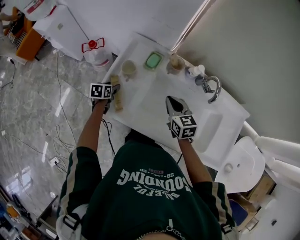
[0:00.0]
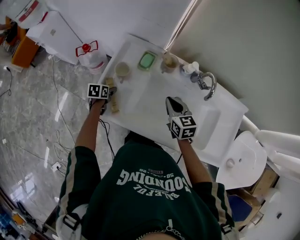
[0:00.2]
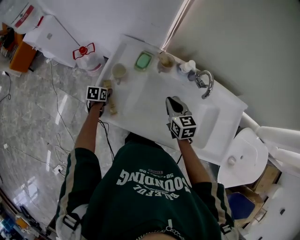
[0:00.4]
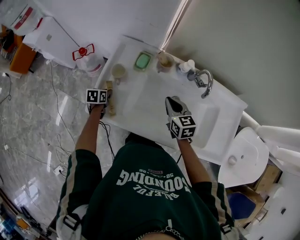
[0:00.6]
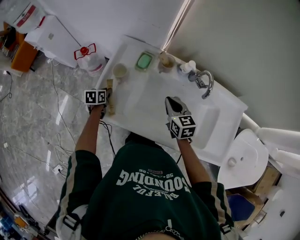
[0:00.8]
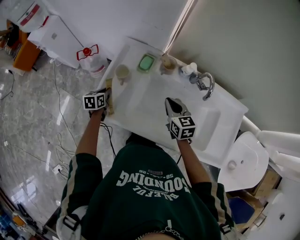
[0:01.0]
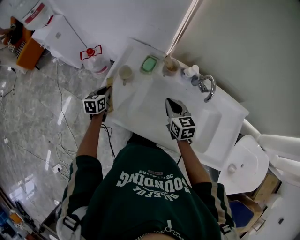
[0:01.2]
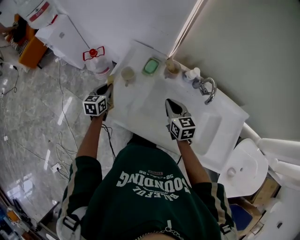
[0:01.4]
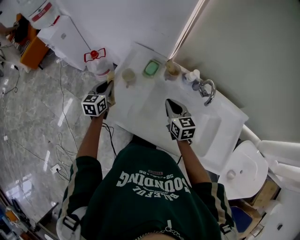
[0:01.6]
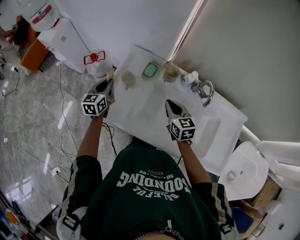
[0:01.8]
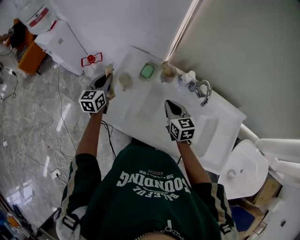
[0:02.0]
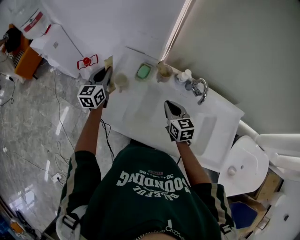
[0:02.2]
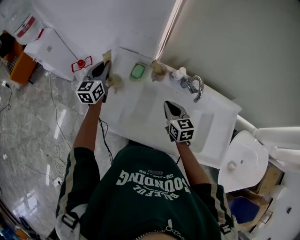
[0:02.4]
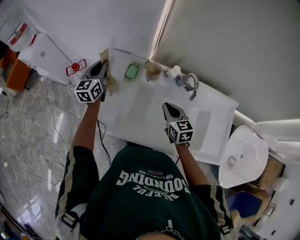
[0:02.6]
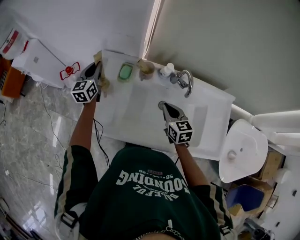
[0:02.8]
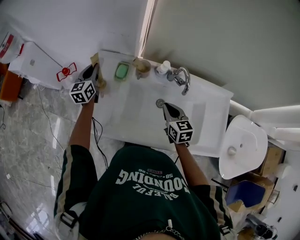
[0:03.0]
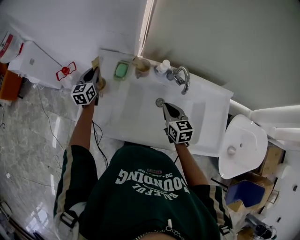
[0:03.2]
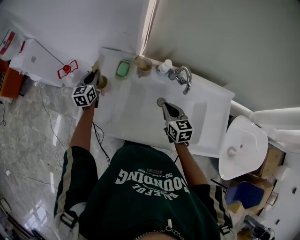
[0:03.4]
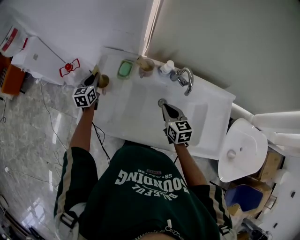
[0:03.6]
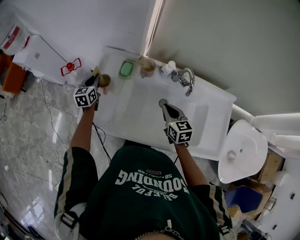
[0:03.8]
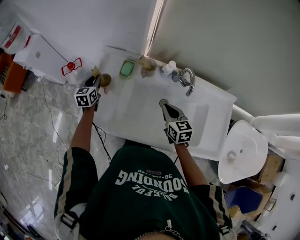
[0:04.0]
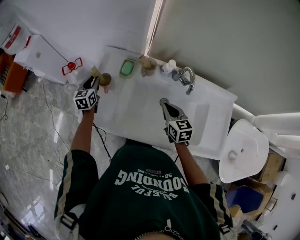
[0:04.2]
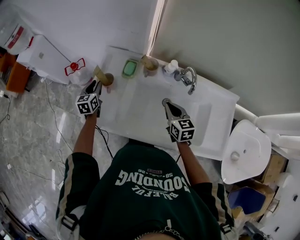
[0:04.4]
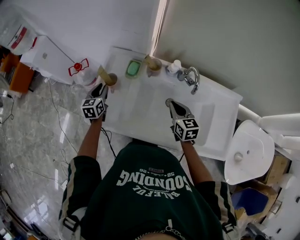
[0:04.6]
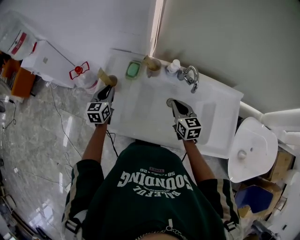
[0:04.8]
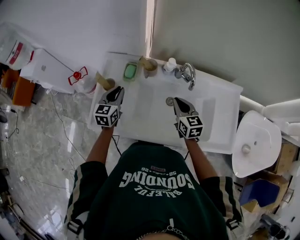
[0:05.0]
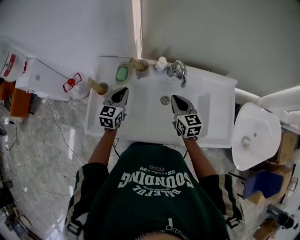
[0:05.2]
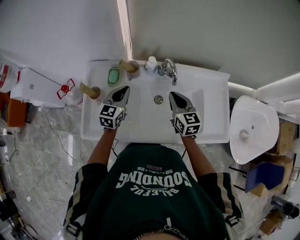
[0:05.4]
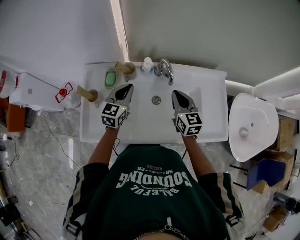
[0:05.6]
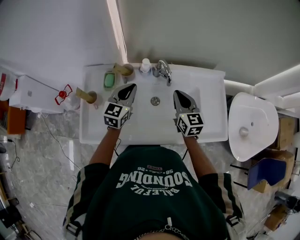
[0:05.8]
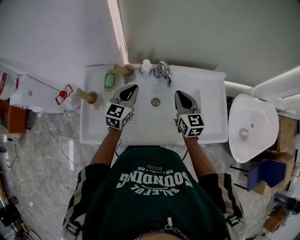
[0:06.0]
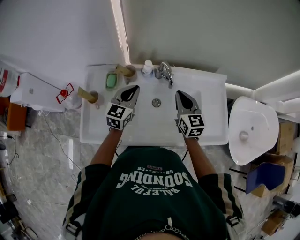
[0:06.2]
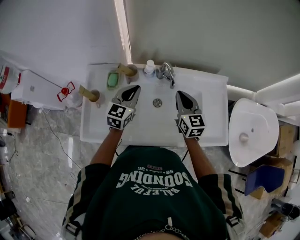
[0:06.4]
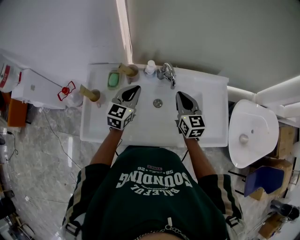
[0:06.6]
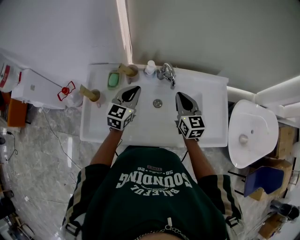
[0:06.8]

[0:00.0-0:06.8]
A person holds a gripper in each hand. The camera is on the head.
0:00.0 to 0:01.4: The left gripper is displaced upward by roughly 10 cm, changes its angle by some 30 degrees, and closes its fingers.
0:01.4 to 0:02.8: The left gripper is displaced forward, upward and to the right by about 20 cm, and swivels approximately 20 degrees. The right gripper shifts roughly 10 cm to the right.
0:02.8 to 0:04.0: The left gripper goes some 10 cm downward.
0:04.0 to 0:05.4: The right gripper travels to the right and upward by some 10 cm; the left gripper goes about 25 cm to the right, and rotates about 30 degrees.
0:05.4 to 0:06.8: The left gripper travels to the right by approximately 5 cm.

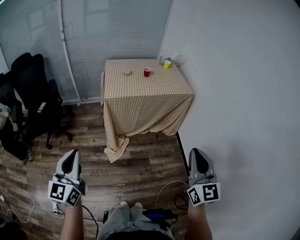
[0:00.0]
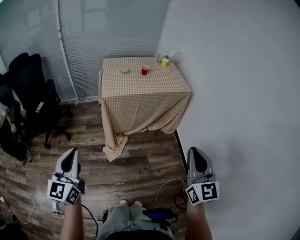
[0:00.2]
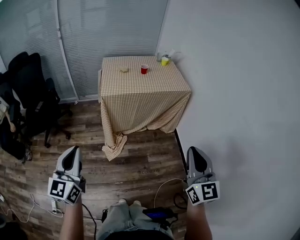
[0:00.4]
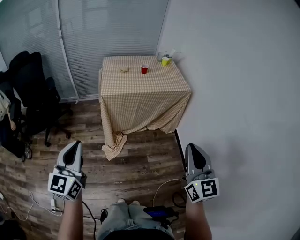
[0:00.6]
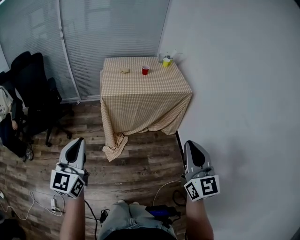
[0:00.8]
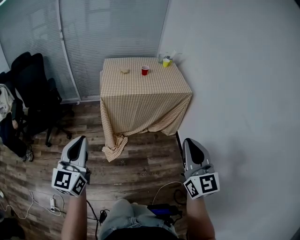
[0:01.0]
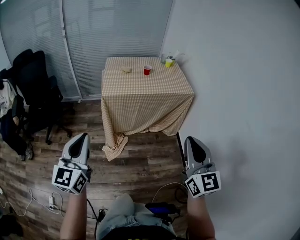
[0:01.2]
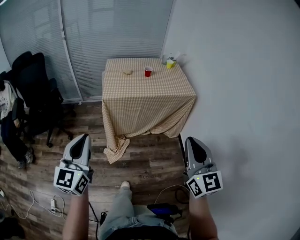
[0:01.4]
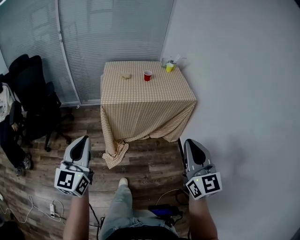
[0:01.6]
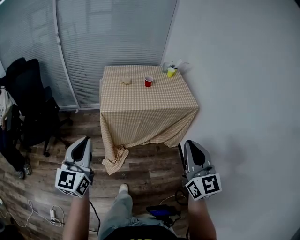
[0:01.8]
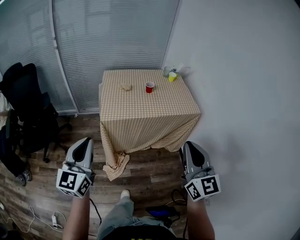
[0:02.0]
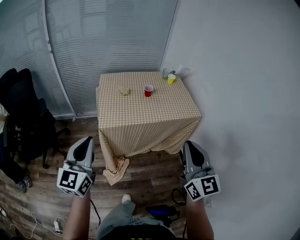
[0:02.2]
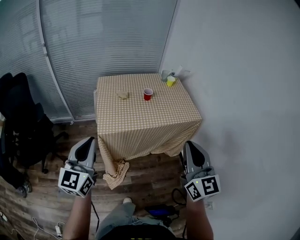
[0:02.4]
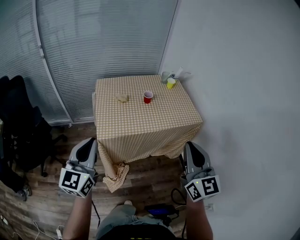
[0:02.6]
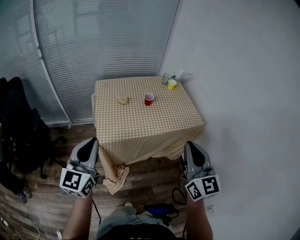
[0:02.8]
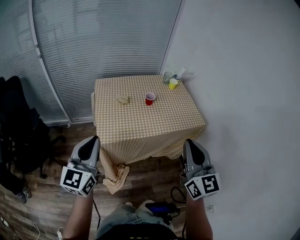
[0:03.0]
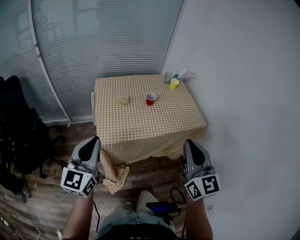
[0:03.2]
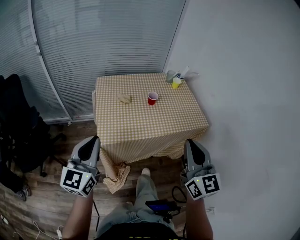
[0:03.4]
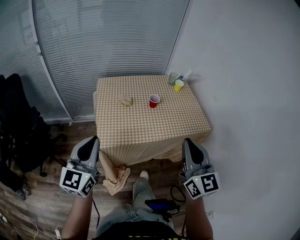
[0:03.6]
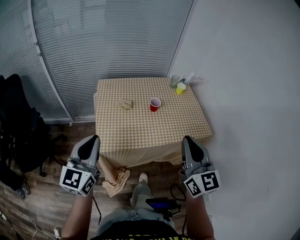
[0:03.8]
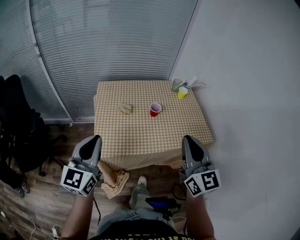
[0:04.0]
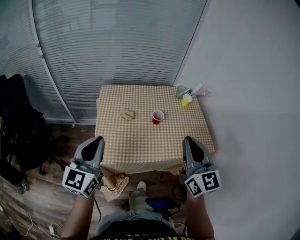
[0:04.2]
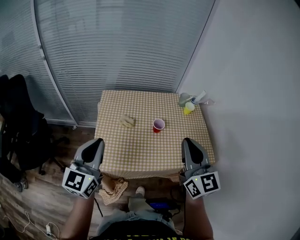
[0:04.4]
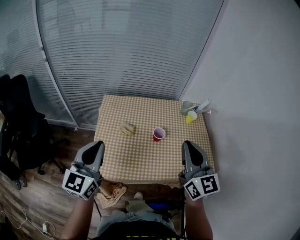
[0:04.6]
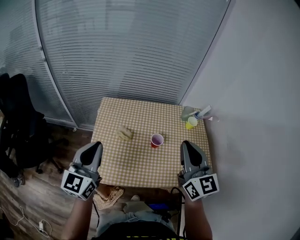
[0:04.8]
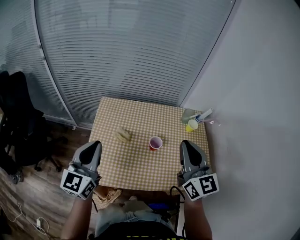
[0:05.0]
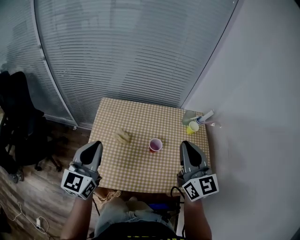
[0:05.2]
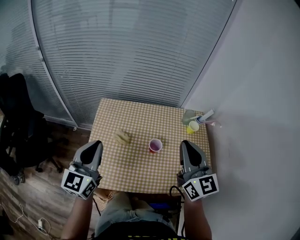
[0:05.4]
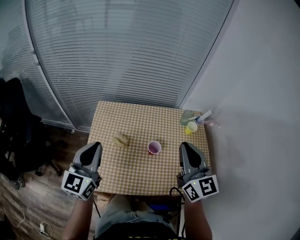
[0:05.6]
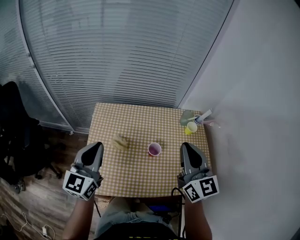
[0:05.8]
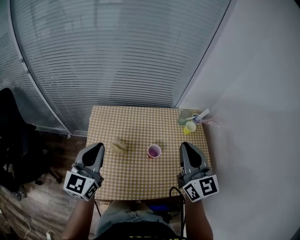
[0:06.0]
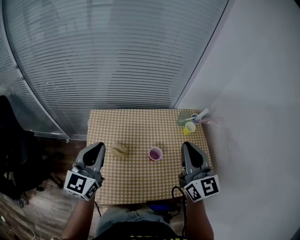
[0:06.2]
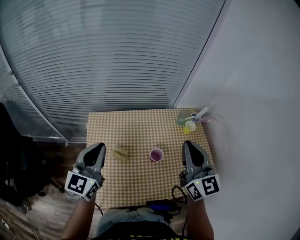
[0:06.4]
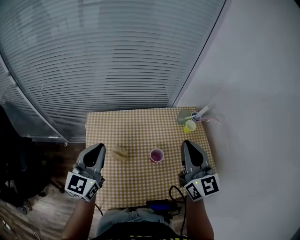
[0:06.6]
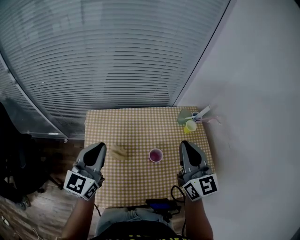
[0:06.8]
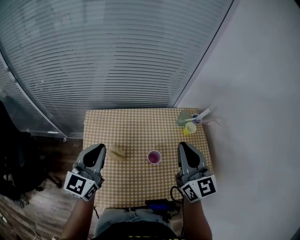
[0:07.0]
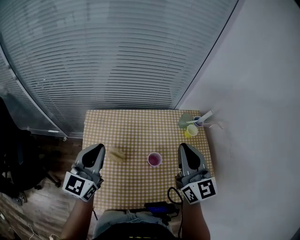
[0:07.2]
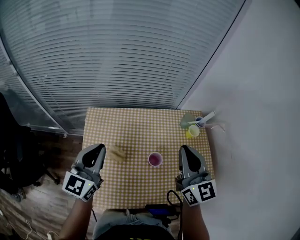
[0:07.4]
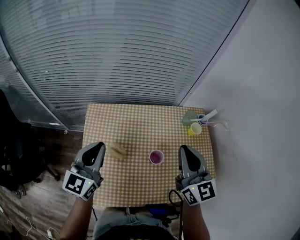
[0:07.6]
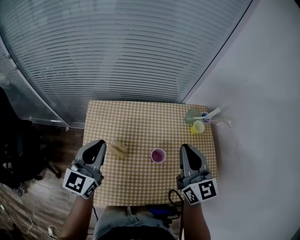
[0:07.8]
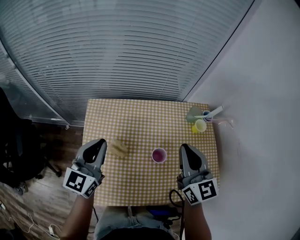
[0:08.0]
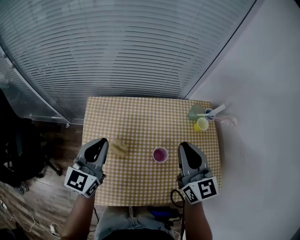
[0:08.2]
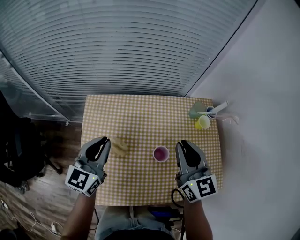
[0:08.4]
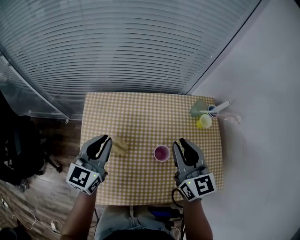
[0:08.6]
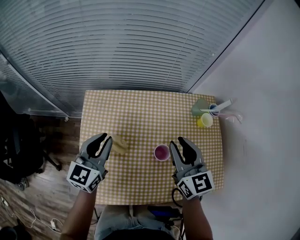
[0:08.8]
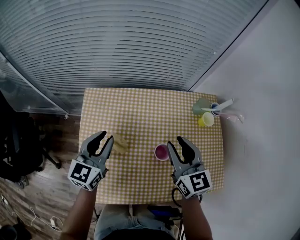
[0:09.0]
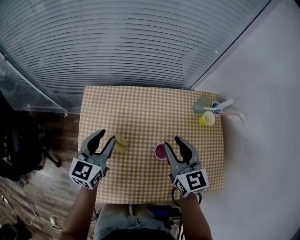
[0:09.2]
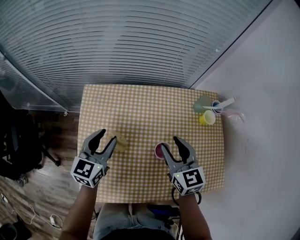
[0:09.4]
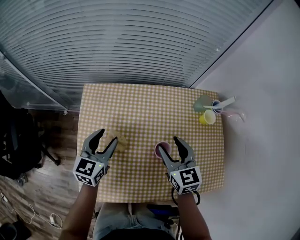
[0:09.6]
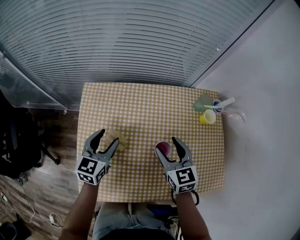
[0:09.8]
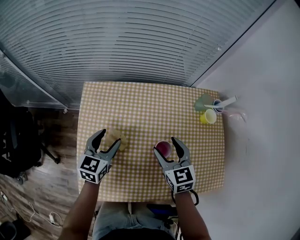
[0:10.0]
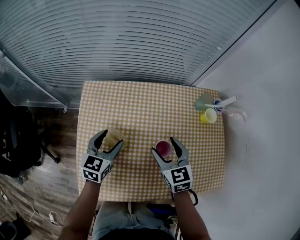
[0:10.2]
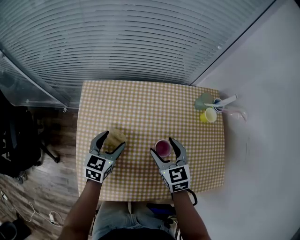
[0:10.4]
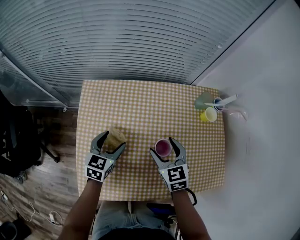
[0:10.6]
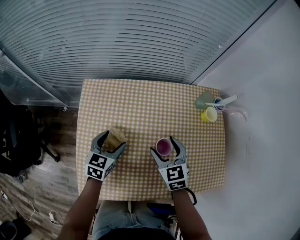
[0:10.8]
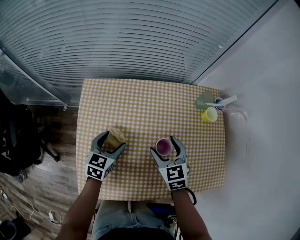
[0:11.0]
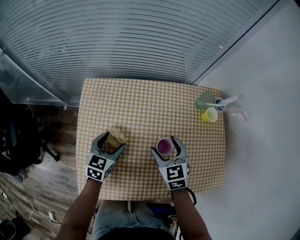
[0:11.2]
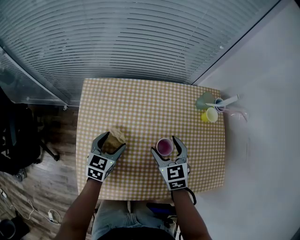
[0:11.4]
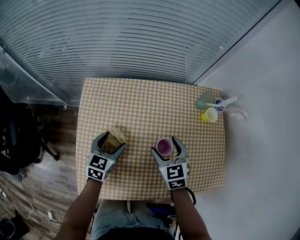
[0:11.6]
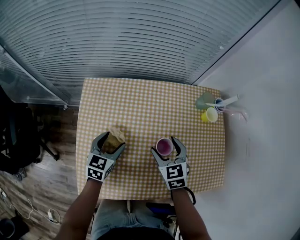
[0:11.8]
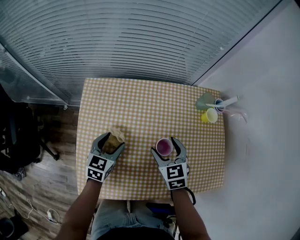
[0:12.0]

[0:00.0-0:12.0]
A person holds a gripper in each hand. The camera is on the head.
0:00.0 to 0:01.6: The right gripper heads forward, covering approximately 10 cm; the left gripper travels forward and to the right by about 15 cm.
0:01.6 to 0:03.0: Both grippers travel together forward, some 30 cm.
0:03.0 to 0:04.4: Both grippers move forward, some 20 cm.
0:04.4 to 0:06.0: The two grippers go about 20 cm forward.
0:06.0 to 0:07.6: Both grippers move forward, about 5 cm.
0:07.6 to 0:09.0: Both grippers travel together downward, roughly 10 cm. The right gripper opens.
0:09.0 to 0:10.4: Both grippers travel together downward, some 10 cm. The left gripper opens its fingers; the right gripper opens up.
0:10.4 to 0:12.0: There are only small adjustments of the grippers.

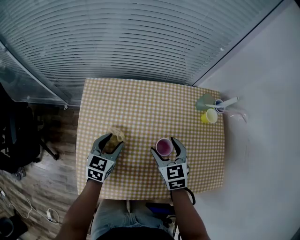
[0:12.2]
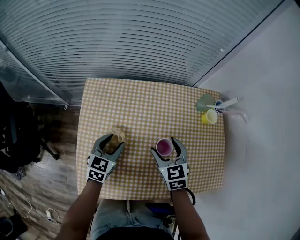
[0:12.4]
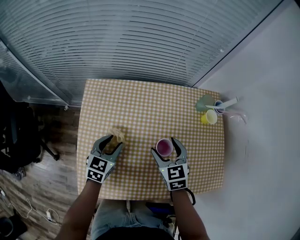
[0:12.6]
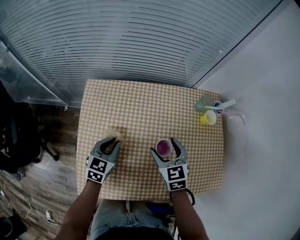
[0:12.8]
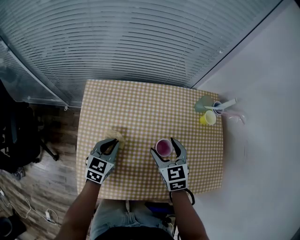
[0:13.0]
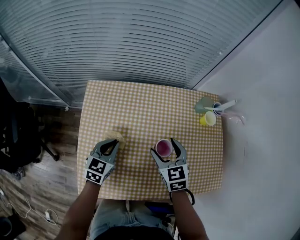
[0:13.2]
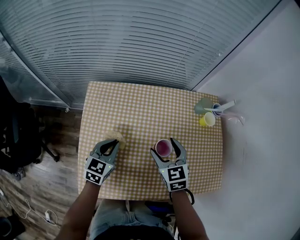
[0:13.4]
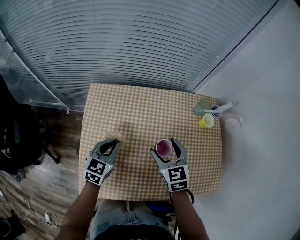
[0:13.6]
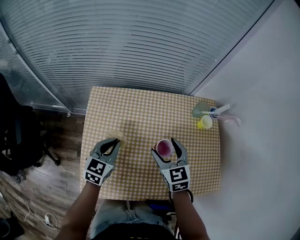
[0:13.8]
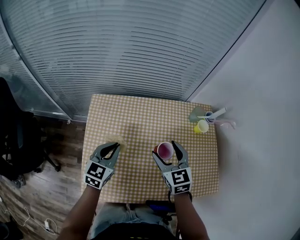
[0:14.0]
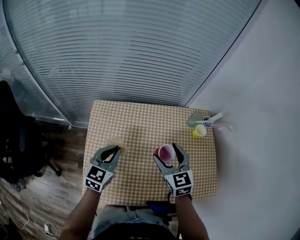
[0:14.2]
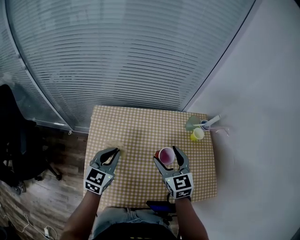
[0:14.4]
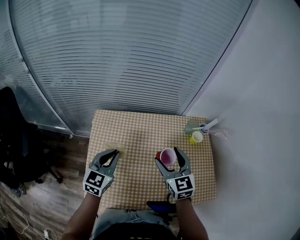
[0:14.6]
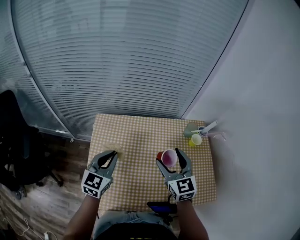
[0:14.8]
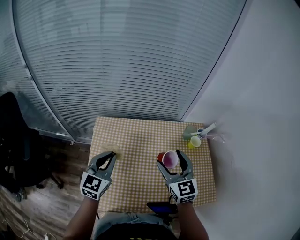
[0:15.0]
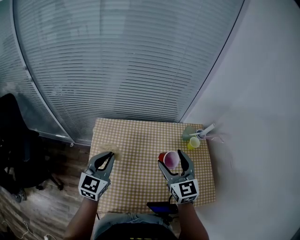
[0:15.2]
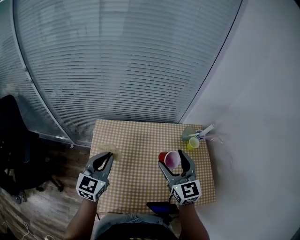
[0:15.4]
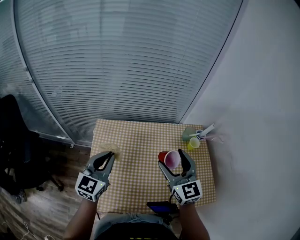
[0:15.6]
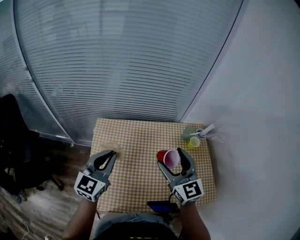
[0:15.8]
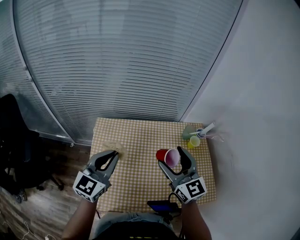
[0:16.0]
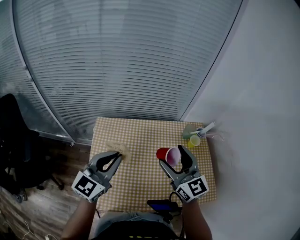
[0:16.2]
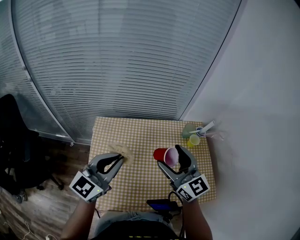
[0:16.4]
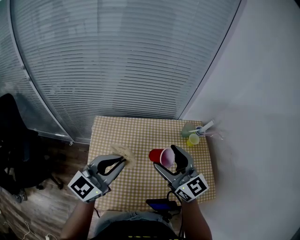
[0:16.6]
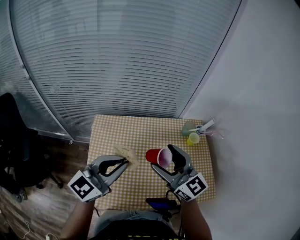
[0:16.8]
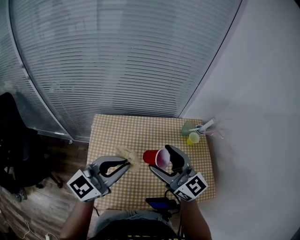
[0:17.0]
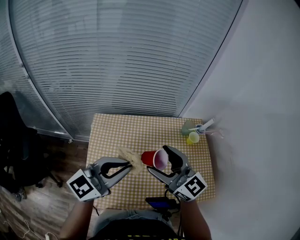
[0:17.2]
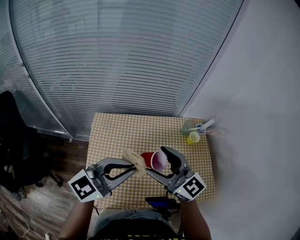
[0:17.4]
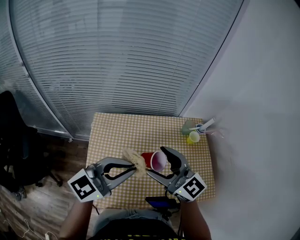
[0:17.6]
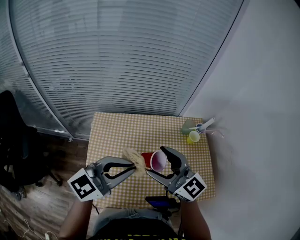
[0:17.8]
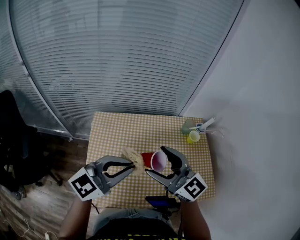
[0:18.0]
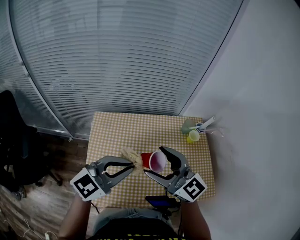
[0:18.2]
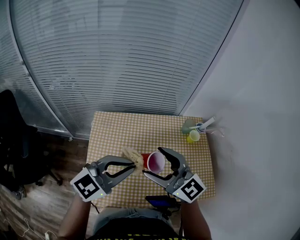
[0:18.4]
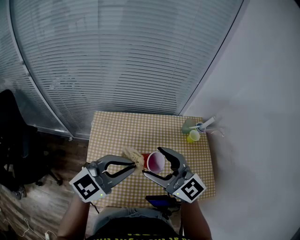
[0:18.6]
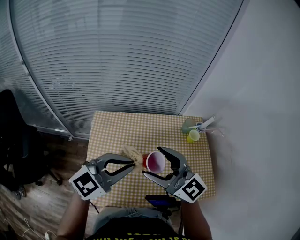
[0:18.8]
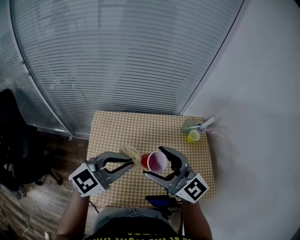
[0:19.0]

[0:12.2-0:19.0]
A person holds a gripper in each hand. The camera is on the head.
0:12.2 to 0:13.6: The left gripper closes its fingers.
0:13.6 to 0:15.0: Both grippers travel together upward, about 15 cm. The right gripper rotates roughly 20 degrees.
0:15.0 to 0:16.2: The grippers both shift upward by some 5 cm.
0:16.2 to 0:17.6: The left gripper is displaced to the right and backward by approximately 10 cm, and turns by approximately 30 degrees, while the right gripper moves to the left, roughly 5 cm.
0:17.6 to 0:19.0: The grippers move only a little.
